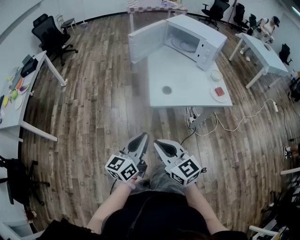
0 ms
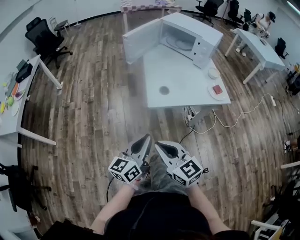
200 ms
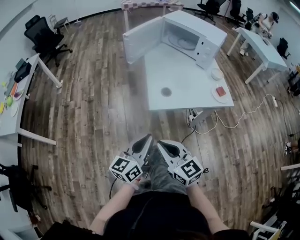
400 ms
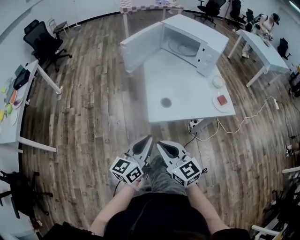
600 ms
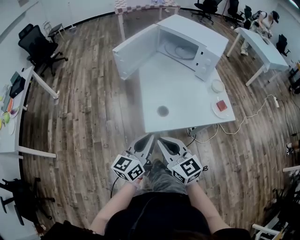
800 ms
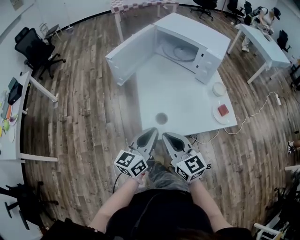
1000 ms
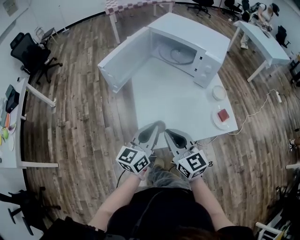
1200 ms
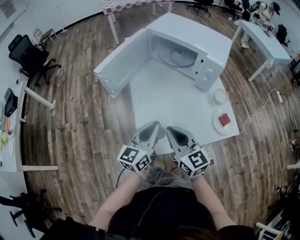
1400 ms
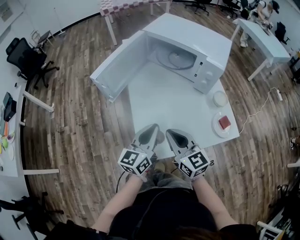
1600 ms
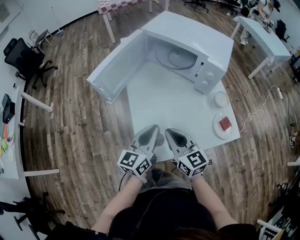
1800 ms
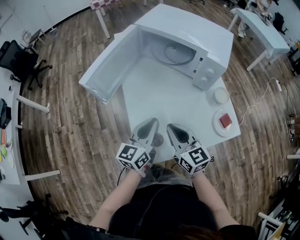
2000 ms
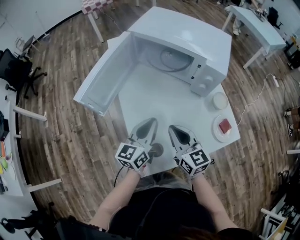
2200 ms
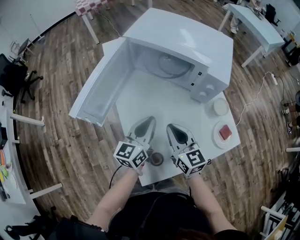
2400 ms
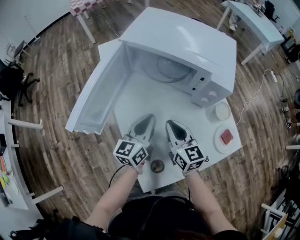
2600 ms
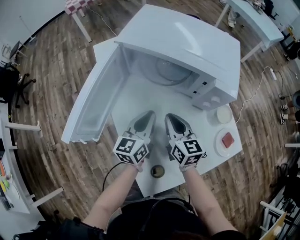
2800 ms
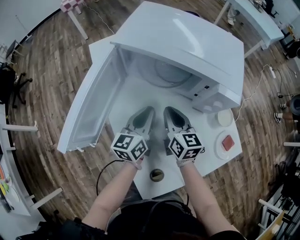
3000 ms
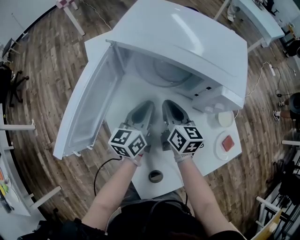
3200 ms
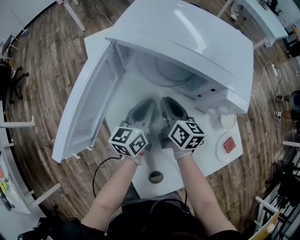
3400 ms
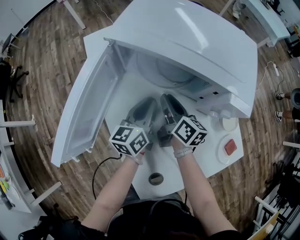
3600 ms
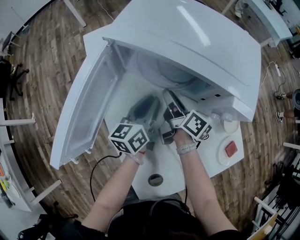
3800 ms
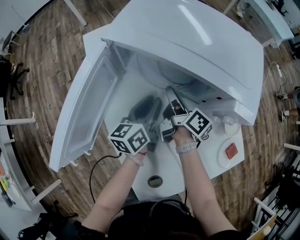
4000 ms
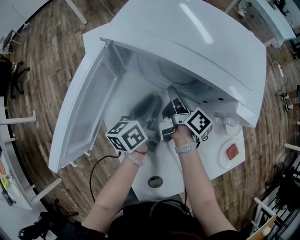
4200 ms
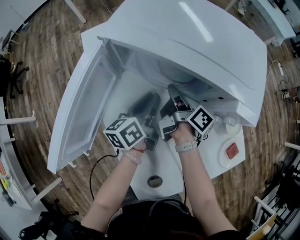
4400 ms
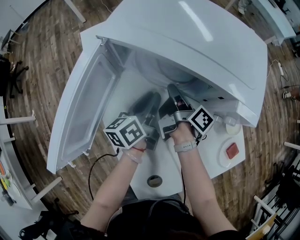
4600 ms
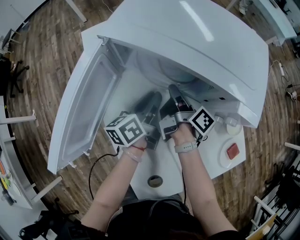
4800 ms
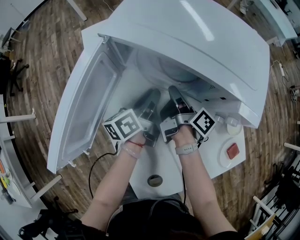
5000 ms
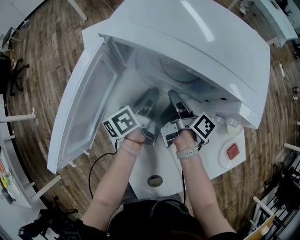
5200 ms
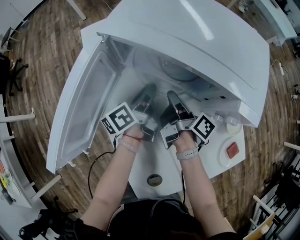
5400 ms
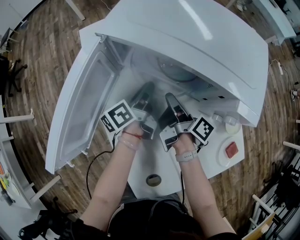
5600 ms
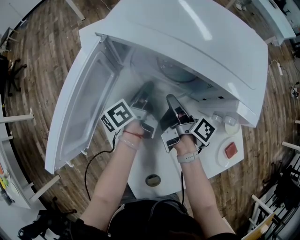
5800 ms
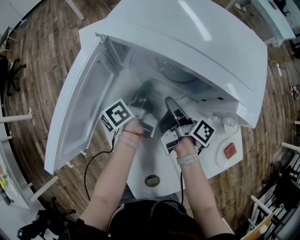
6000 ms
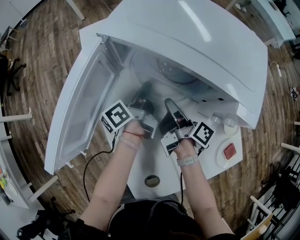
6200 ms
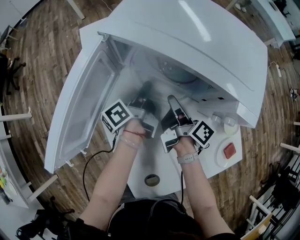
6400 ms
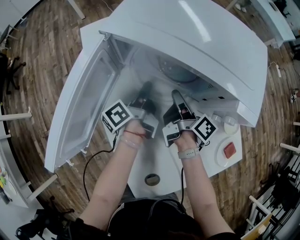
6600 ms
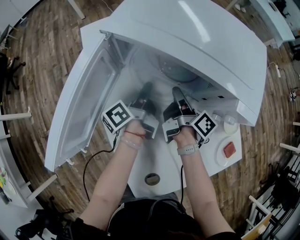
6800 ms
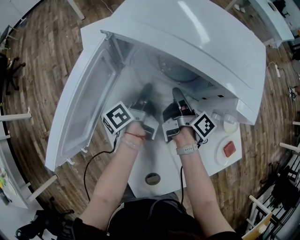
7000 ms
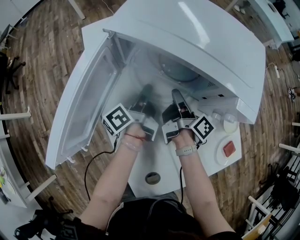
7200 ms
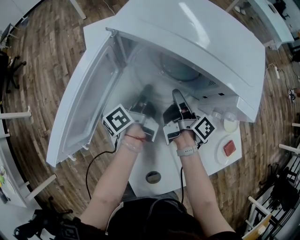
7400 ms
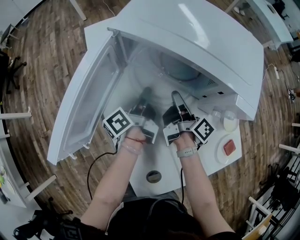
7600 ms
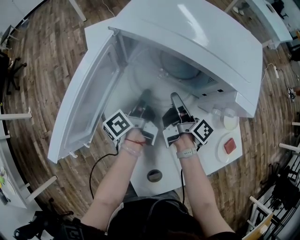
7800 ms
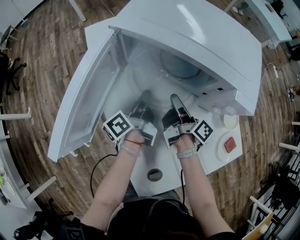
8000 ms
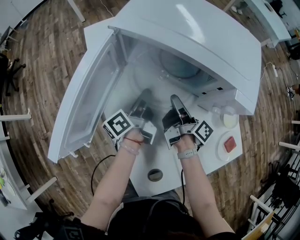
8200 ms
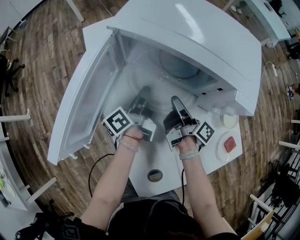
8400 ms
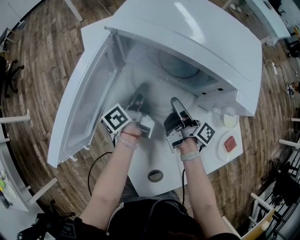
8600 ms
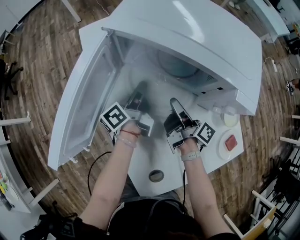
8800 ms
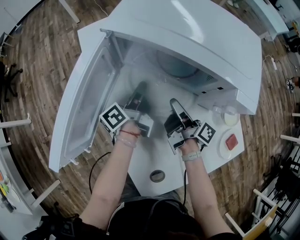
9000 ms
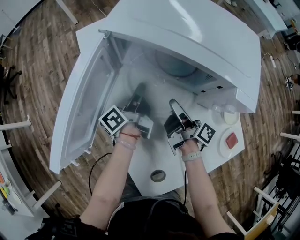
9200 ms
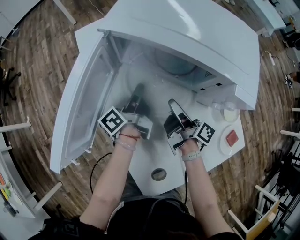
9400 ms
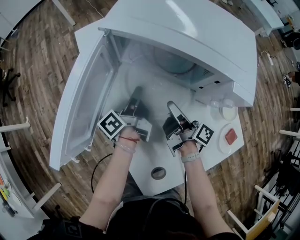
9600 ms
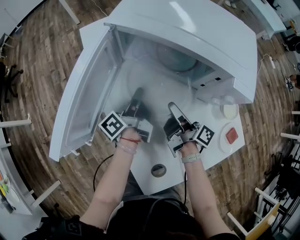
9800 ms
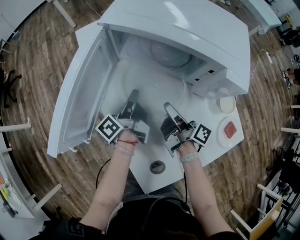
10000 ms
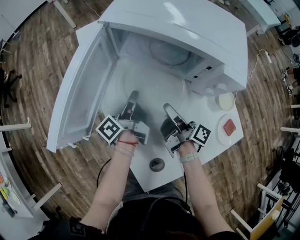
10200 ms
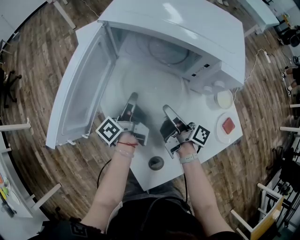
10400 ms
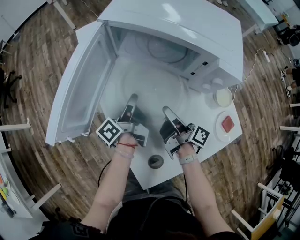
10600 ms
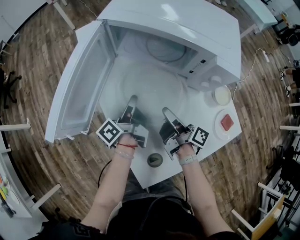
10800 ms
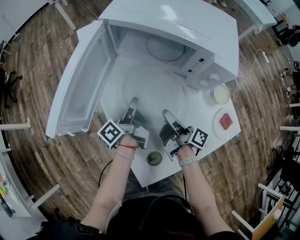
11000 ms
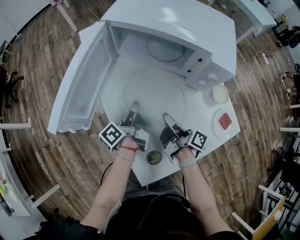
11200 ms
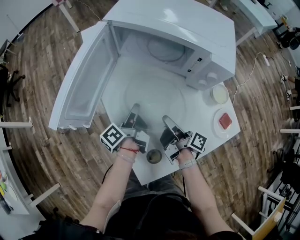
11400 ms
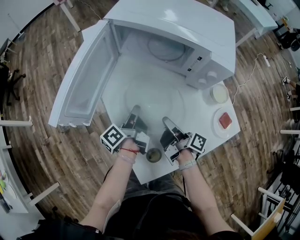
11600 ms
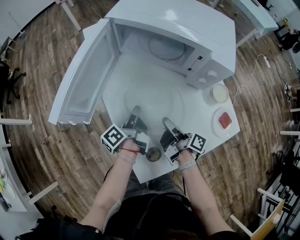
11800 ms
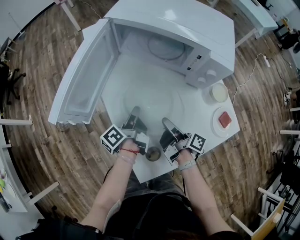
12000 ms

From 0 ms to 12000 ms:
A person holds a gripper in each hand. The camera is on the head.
From 0 ms to 1600 ms: The left gripper shifts by some 35 cm.
From 1600 ms to 3000 ms: The left gripper ends up some 25 cm from where it was.
From 3000 ms to 4400 ms: The left gripper moves some 10 cm, changes its angle by approximately 20 degrees, and opens its fingers.
From 4400 ms to 6000 ms: The left gripper ends up approximately 5 cm from where it was, and changes its angle by roughly 30 degrees.
From 9000 ms to 10400 ms: The left gripper ends up roughly 10 cm from where it was.
From 10400 ms to 12000 ms: The left gripper shifts by approximately 10 cm.

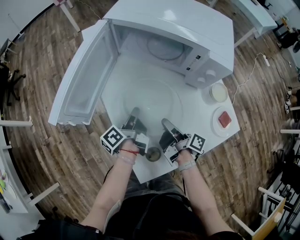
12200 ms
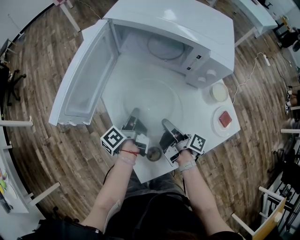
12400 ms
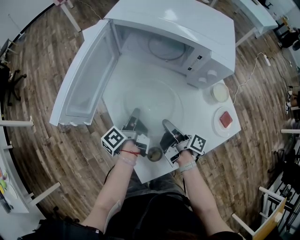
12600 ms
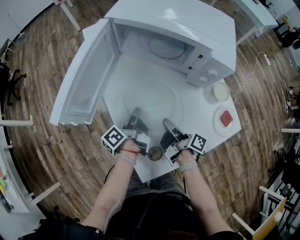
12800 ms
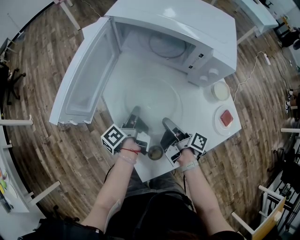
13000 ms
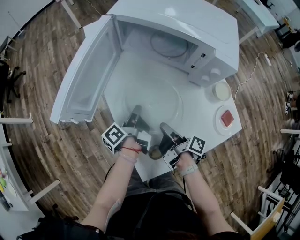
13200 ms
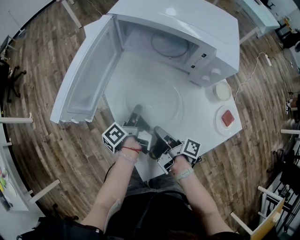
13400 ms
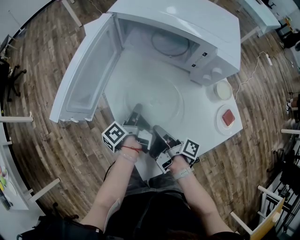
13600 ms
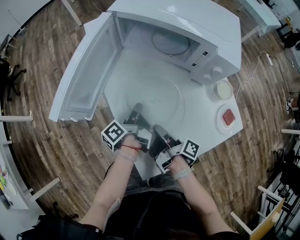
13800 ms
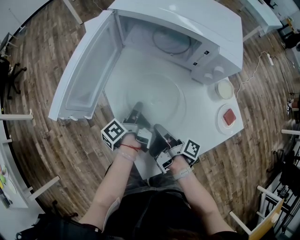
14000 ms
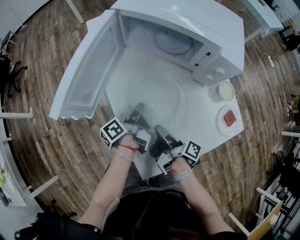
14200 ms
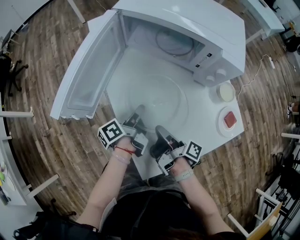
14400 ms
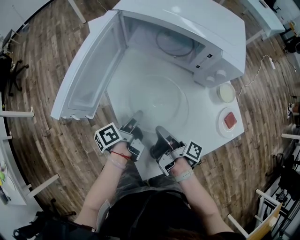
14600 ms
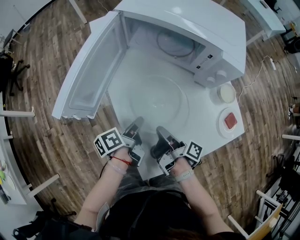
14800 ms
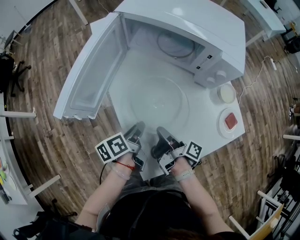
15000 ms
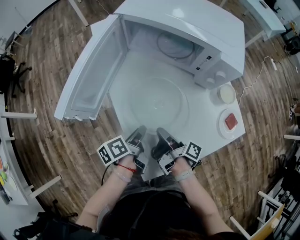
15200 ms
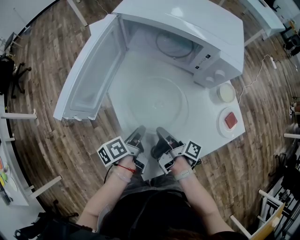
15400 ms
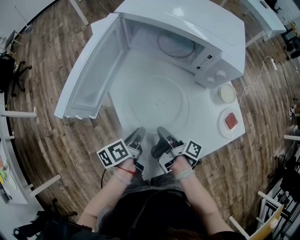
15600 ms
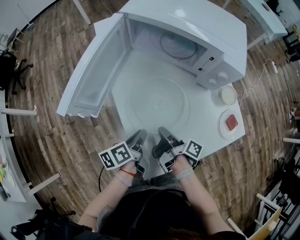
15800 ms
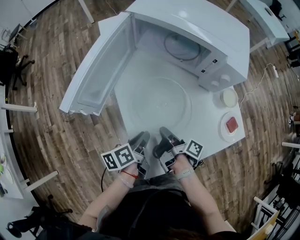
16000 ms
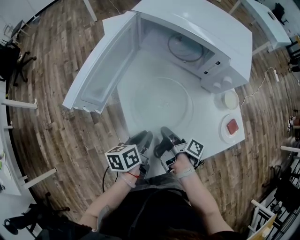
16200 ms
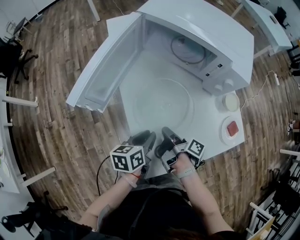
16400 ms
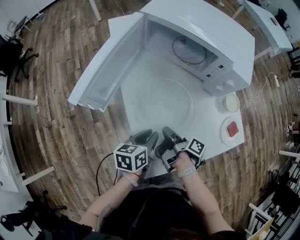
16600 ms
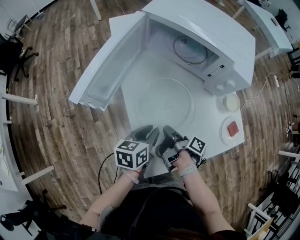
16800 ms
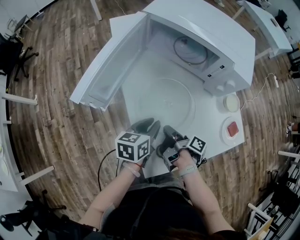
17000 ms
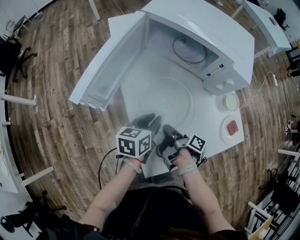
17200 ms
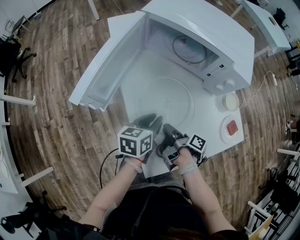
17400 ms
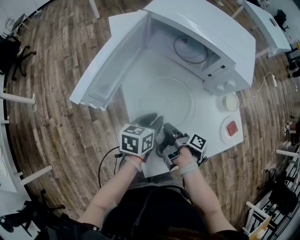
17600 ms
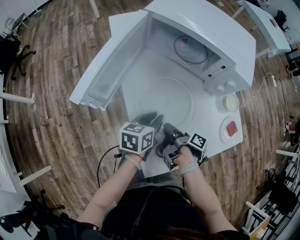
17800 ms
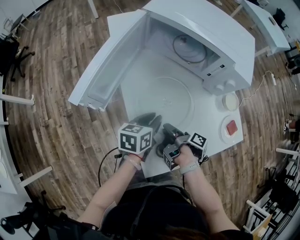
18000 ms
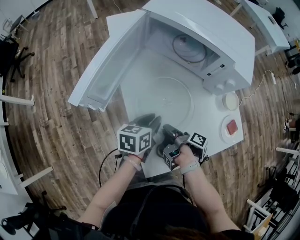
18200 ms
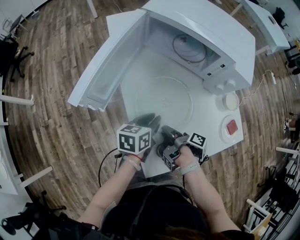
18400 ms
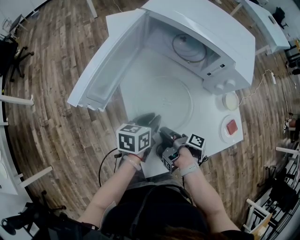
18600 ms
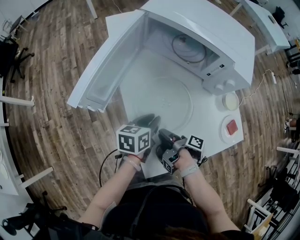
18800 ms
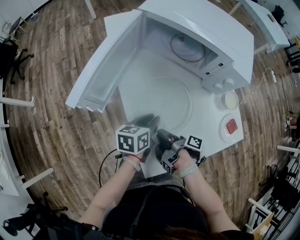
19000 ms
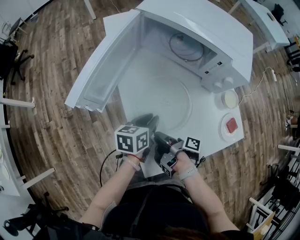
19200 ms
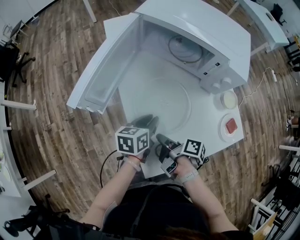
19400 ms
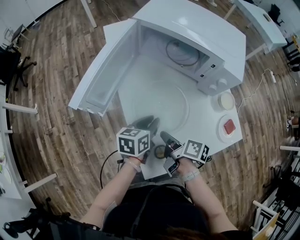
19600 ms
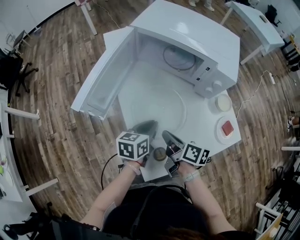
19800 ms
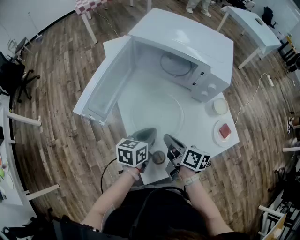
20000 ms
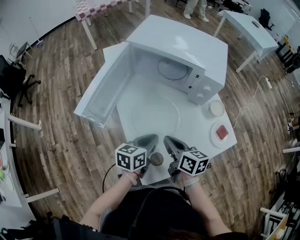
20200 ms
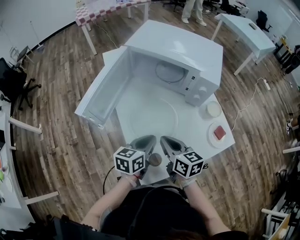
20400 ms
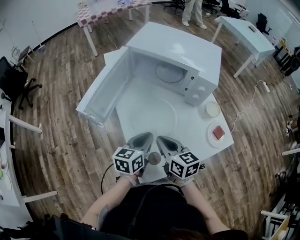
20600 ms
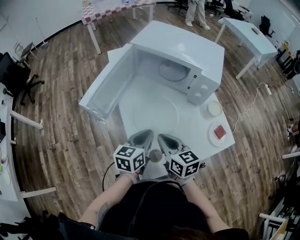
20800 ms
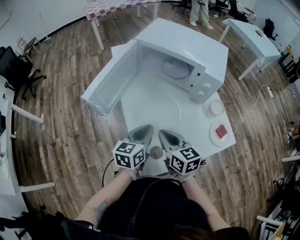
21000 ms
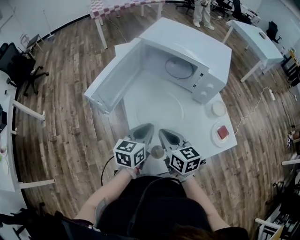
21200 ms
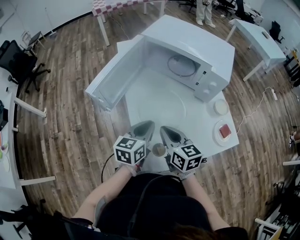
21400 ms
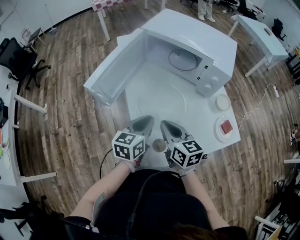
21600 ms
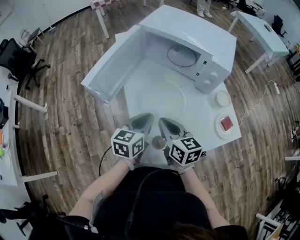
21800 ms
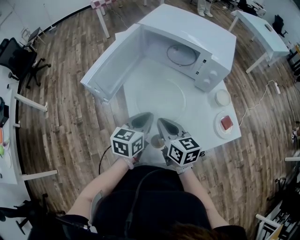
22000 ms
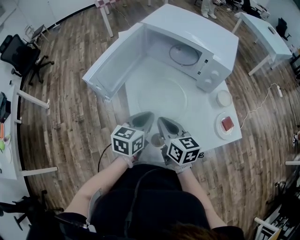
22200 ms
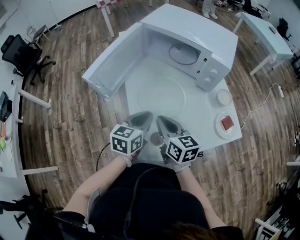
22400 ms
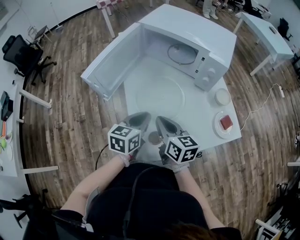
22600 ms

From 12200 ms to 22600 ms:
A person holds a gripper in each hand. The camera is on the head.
From 13600 ms to 15200 ms: The left gripper shifts by approximately 10 cm, and turns by about 30 degrees.
From 15200 ms to 16600 ms: The left gripper changes its angle by roughly 40 degrees.
From 16600 ms to 18200 ms: The left gripper changes place by some 5 cm.
From 19600 ms to 21200 ms: The left gripper moves upward, approximately 5 cm.

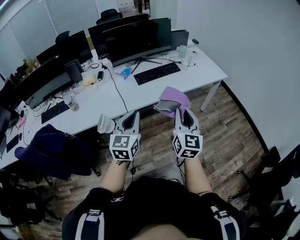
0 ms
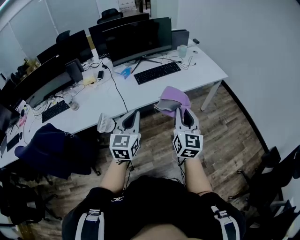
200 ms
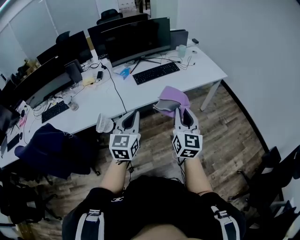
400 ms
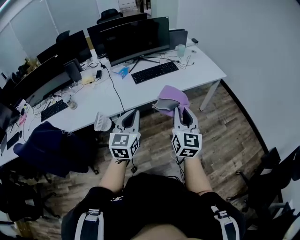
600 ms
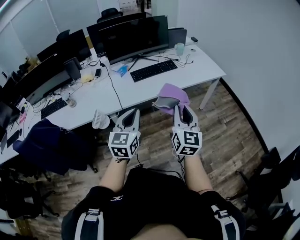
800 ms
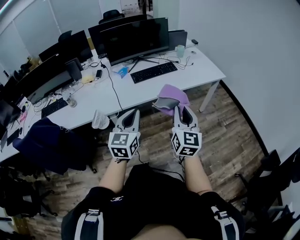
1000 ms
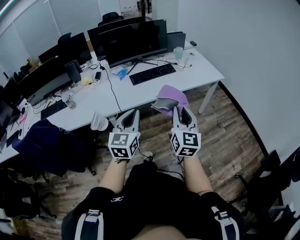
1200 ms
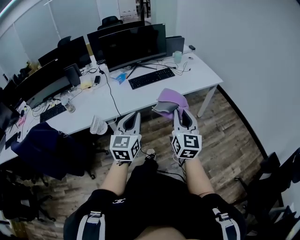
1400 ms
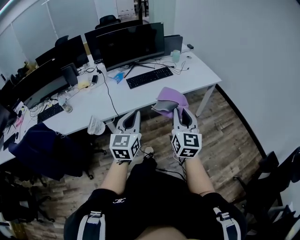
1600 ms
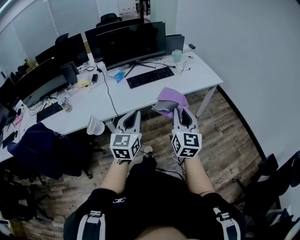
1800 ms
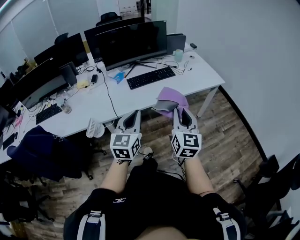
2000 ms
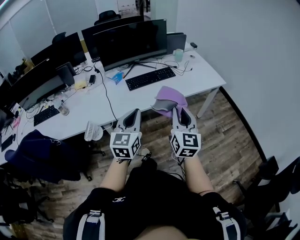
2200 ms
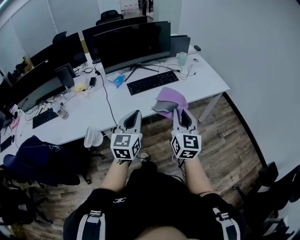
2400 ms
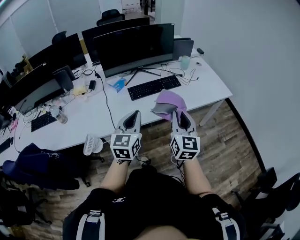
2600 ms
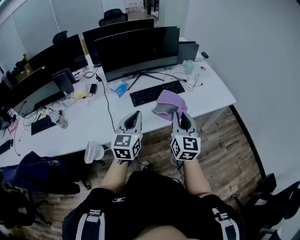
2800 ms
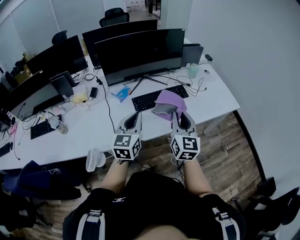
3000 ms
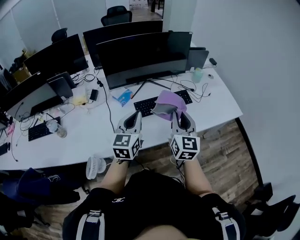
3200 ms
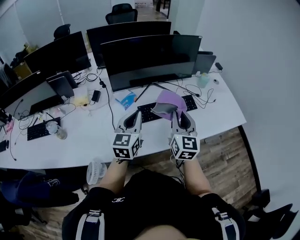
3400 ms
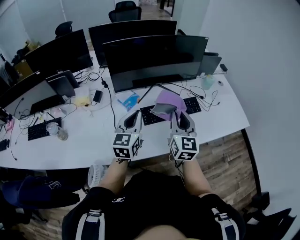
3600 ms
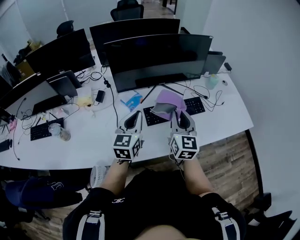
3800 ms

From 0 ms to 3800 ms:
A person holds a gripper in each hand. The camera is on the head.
From 0 ms to 1200 ms: Both grippers move to the right, about 5 cm.
From 1200 ms to 2600 ms: Both grippers travel together forward, roughly 20 cm.
From 2600 ms to 3800 ms: Both grippers move forward and to the left, about 35 cm.
